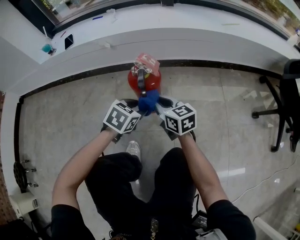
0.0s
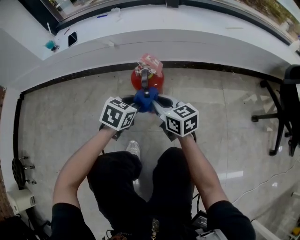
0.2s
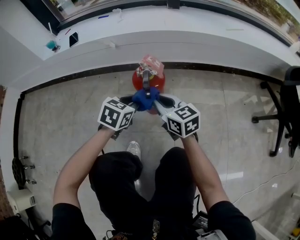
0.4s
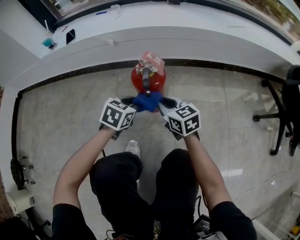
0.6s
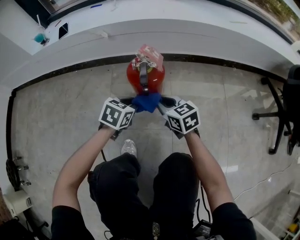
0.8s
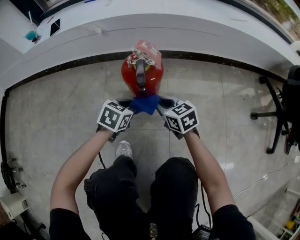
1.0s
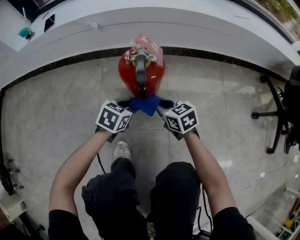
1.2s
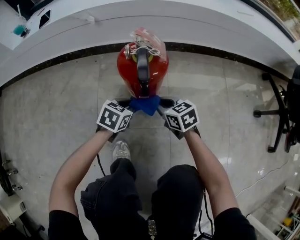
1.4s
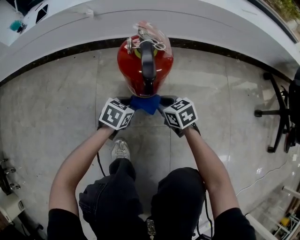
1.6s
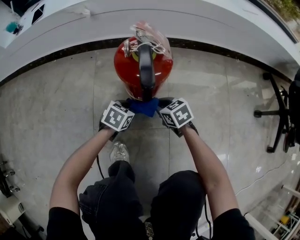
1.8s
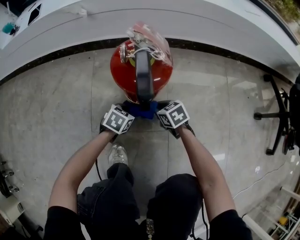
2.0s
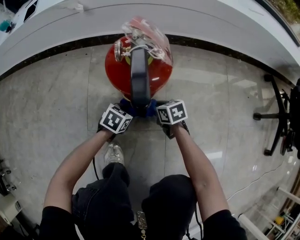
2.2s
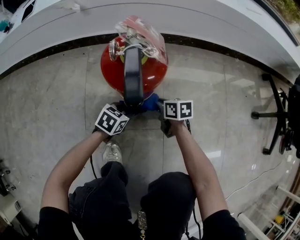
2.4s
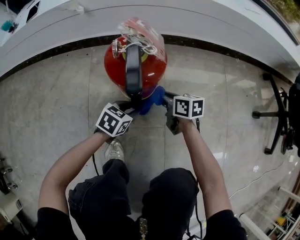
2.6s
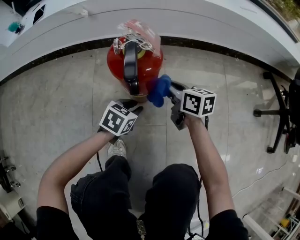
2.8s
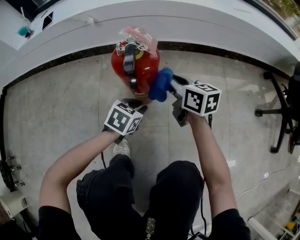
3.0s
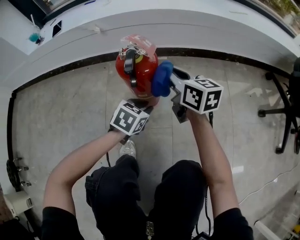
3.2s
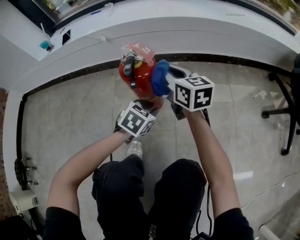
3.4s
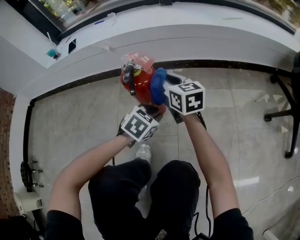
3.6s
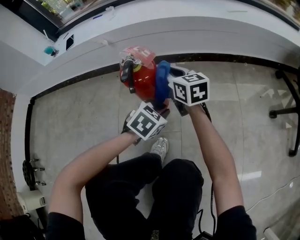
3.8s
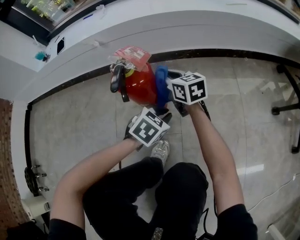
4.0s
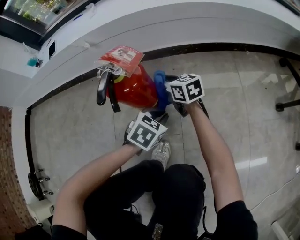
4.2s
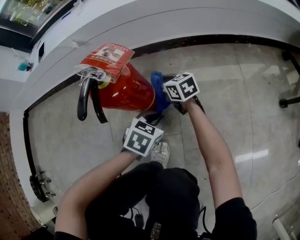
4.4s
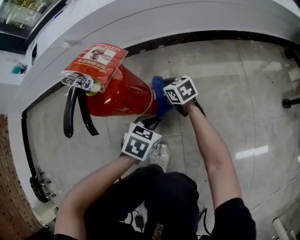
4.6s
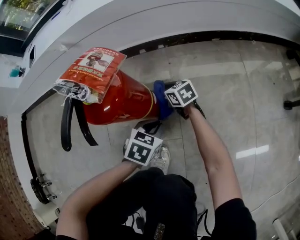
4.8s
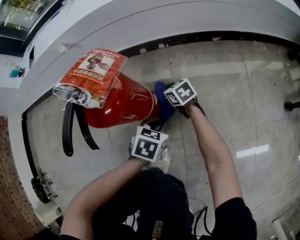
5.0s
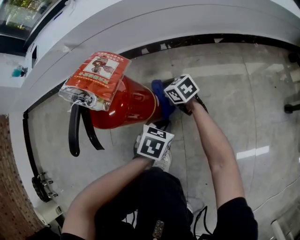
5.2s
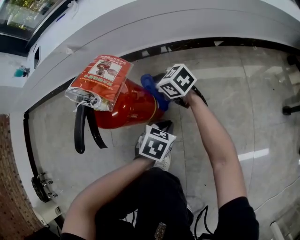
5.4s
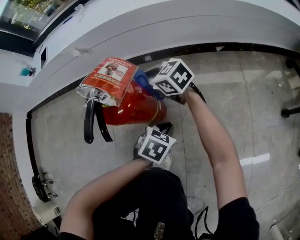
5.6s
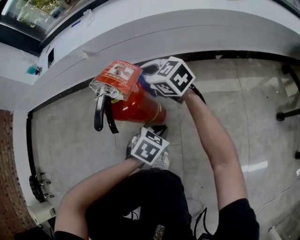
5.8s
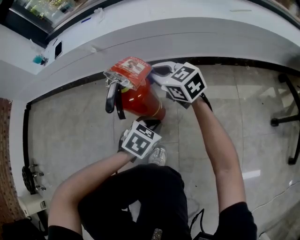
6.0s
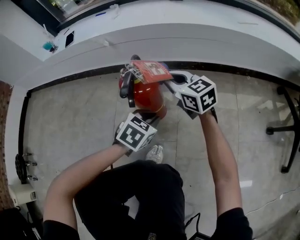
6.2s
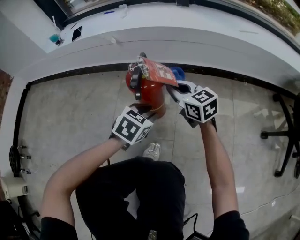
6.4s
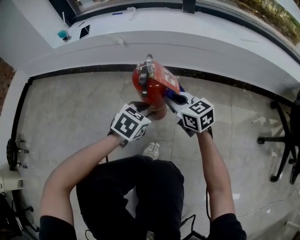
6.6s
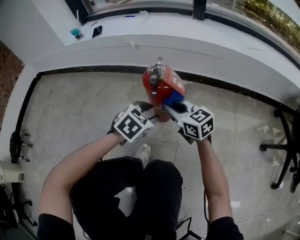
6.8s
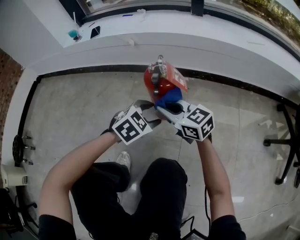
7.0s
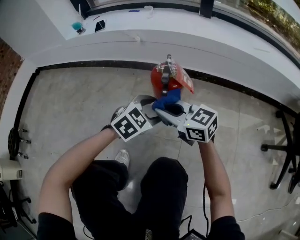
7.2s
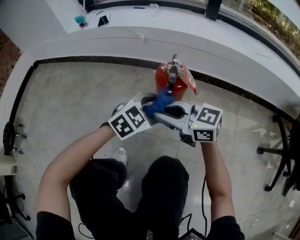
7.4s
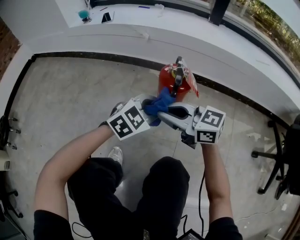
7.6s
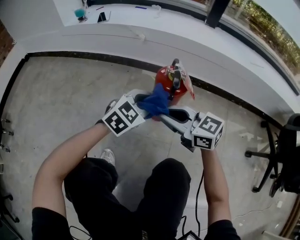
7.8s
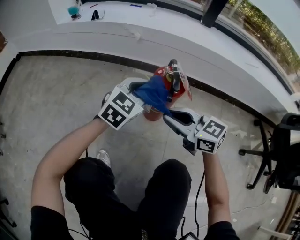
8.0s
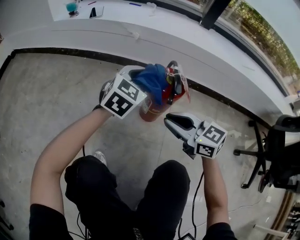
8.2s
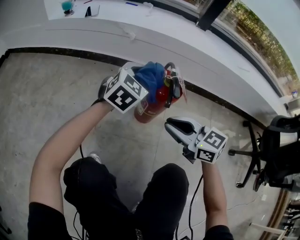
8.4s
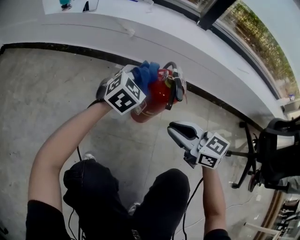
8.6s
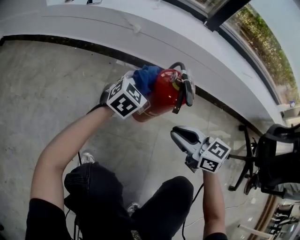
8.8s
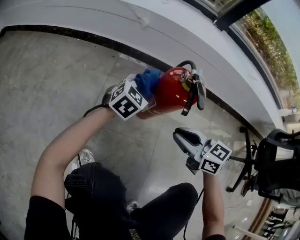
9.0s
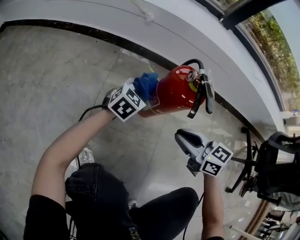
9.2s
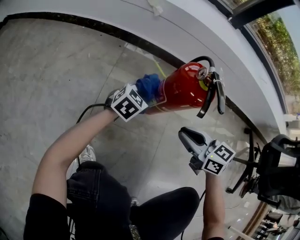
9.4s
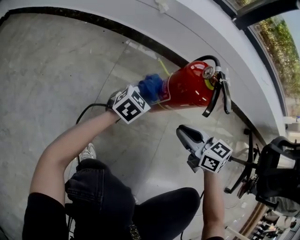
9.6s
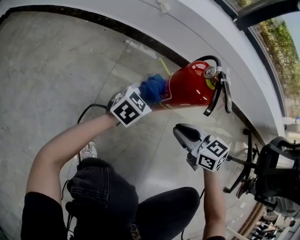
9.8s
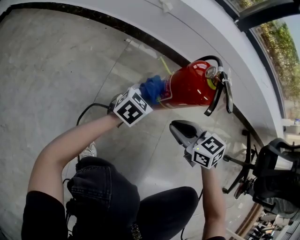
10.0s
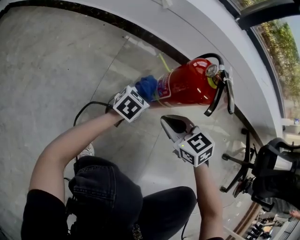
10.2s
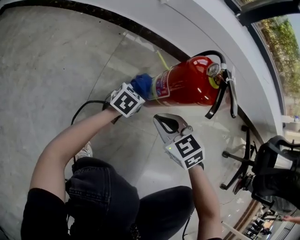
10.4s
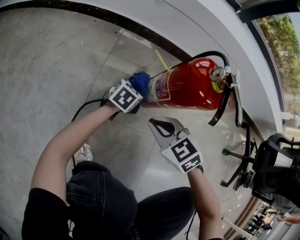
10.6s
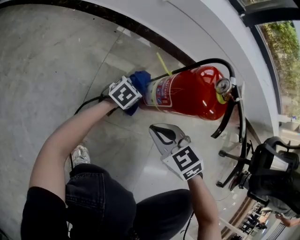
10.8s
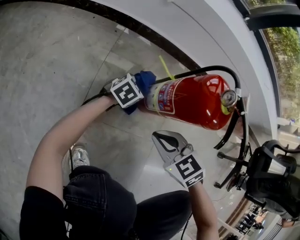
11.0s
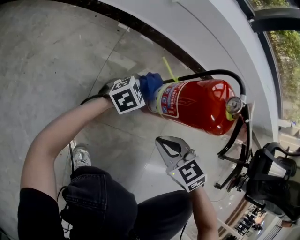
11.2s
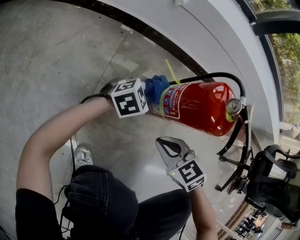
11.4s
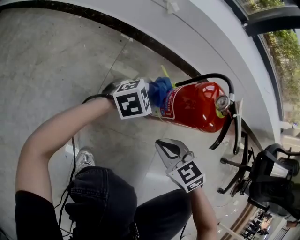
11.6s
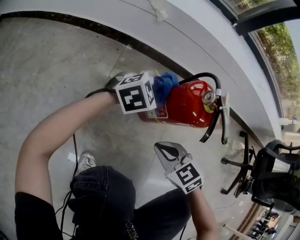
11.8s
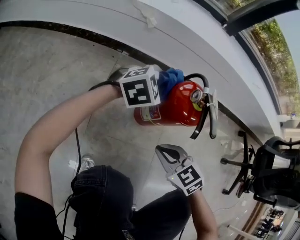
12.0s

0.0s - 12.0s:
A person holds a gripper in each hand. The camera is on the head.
0.0s - 1.6s: The two grippers go roughly 20 cm downward. The right gripper turns by about 30 degrees. The left gripper closes its fingers.
1.6s - 3.0s: The left gripper moves upward and to the right, approximately 10 cm. Meanwhile the right gripper moves upward, roughly 15 cm, and turns by approximately 30 degrees.
3.0s - 4.4s: The left gripper goes some 5 cm to the right, and reaches roughly 10 cm upward, then returns. Meanwhile the right gripper goes roughly 15 cm downward and forward.
4.4s - 6.0s: The right gripper travels upward by approximately 20 cm, and turns by roughly 30 degrees. Meanwhile the left gripper is displaced upward by some 5 cm.
6.0s - 7.6s: The right gripper moves roughly 25 cm, and rotates about 30 degrees. The left gripper travels upward by some 15 cm, rotates about 30 degrees, and opens, then closes once more.
7.6s - 9.0s: The left gripper is displaced forward and downward by roughly 15 cm. The right gripper goes about 10 cm downward and to the right, and swivels approximately 30 degrees.
9.0s - 10.4s: The left gripper goes approximately 15 cm downward, and changes its angle by about 30 degrees. The right gripper travels downward and to the left by approximately 15 cm, and swivels roughly 30 degrees.
10.4s - 12.0s: The left gripper shifts about 20 cm upward, and rolls clockwise, seen from behind, by roughly 40 degrees. Meanwhile the right gripper changes place by about 5 cm.

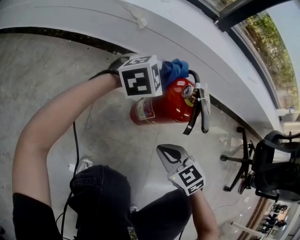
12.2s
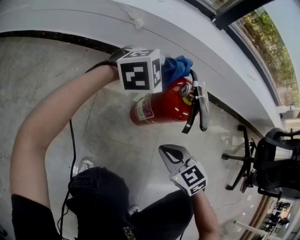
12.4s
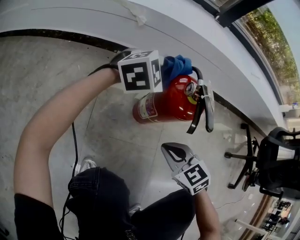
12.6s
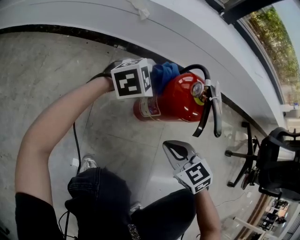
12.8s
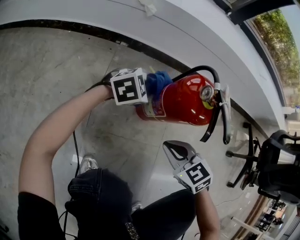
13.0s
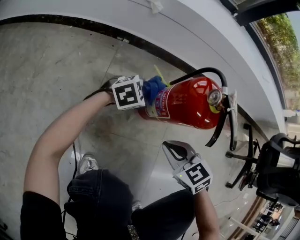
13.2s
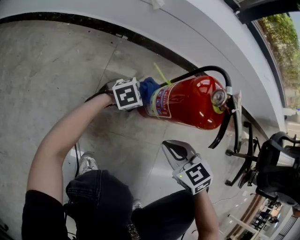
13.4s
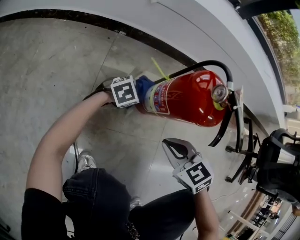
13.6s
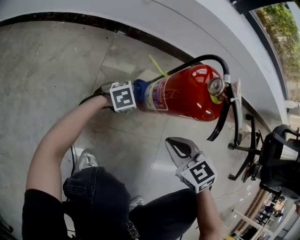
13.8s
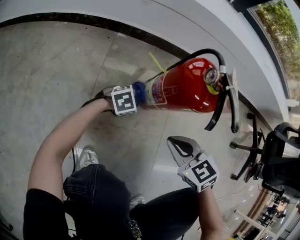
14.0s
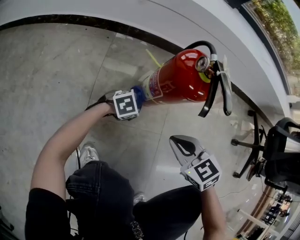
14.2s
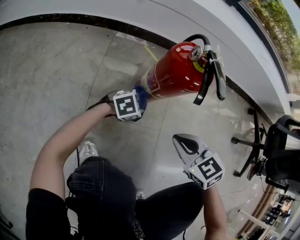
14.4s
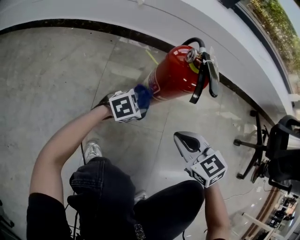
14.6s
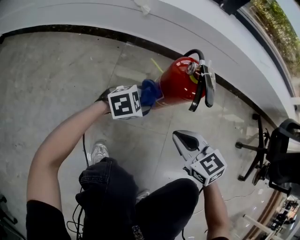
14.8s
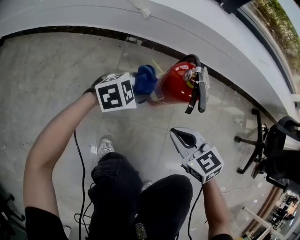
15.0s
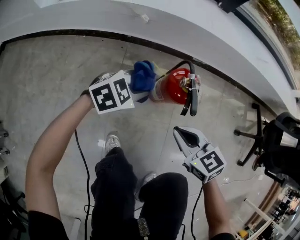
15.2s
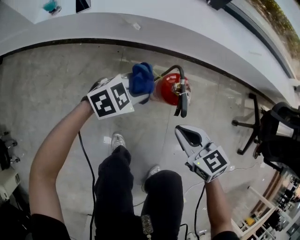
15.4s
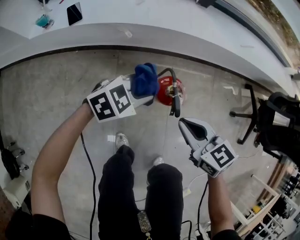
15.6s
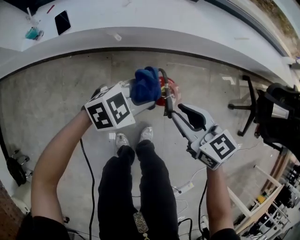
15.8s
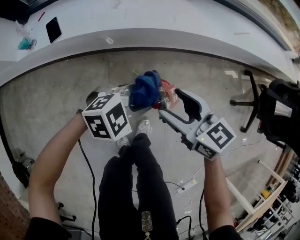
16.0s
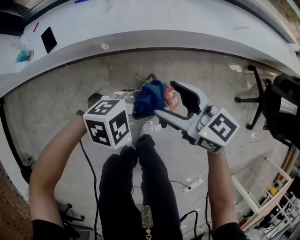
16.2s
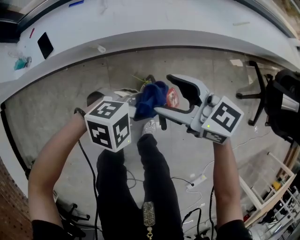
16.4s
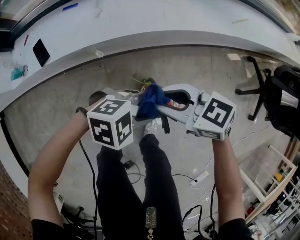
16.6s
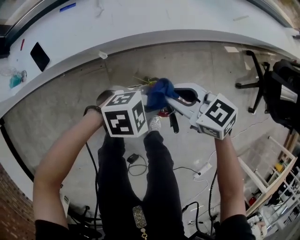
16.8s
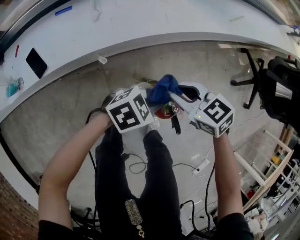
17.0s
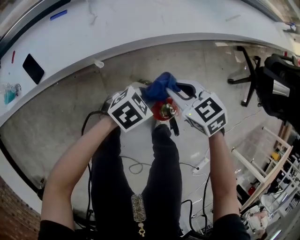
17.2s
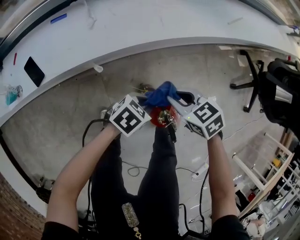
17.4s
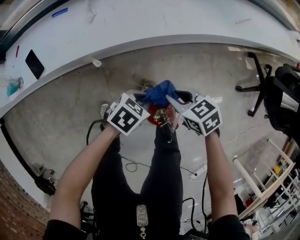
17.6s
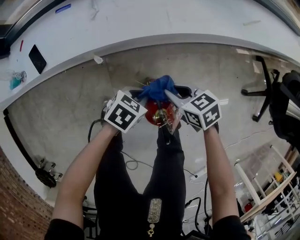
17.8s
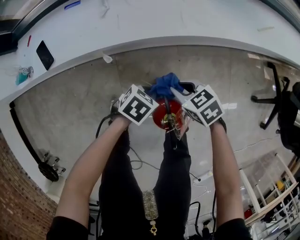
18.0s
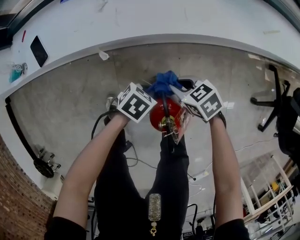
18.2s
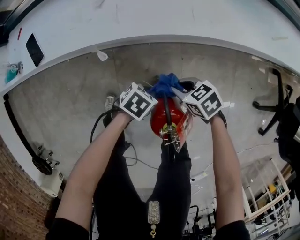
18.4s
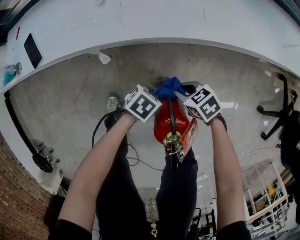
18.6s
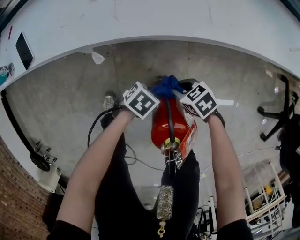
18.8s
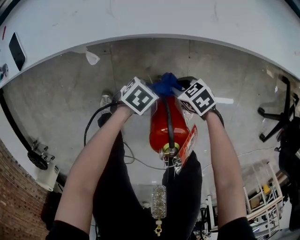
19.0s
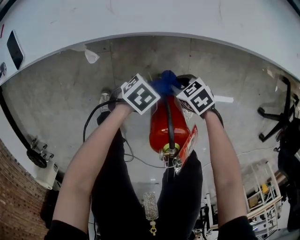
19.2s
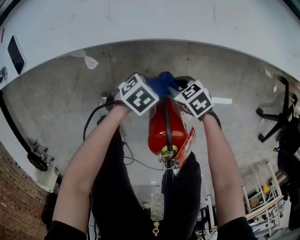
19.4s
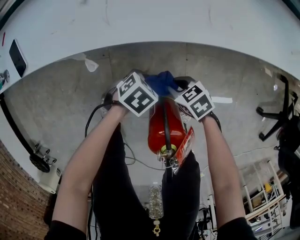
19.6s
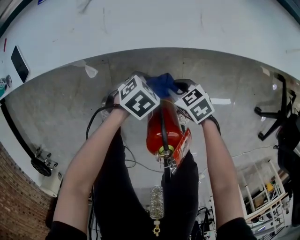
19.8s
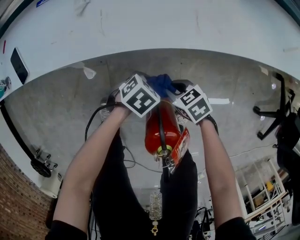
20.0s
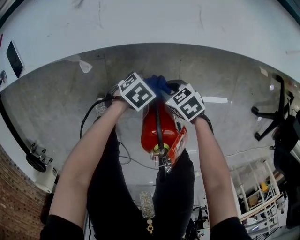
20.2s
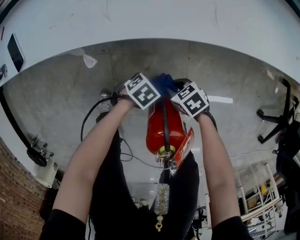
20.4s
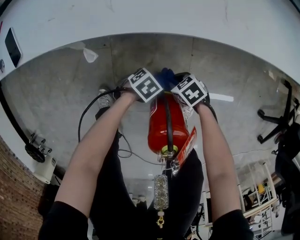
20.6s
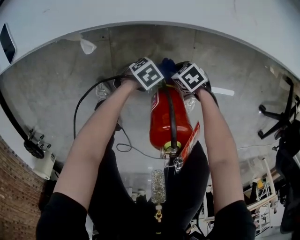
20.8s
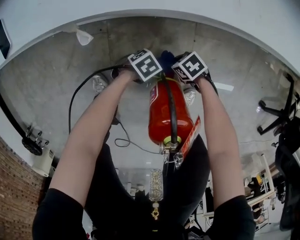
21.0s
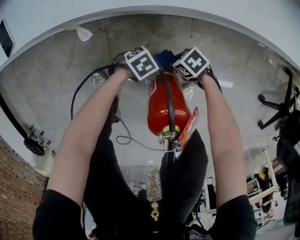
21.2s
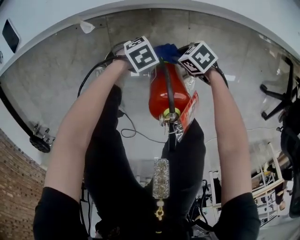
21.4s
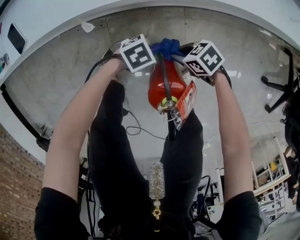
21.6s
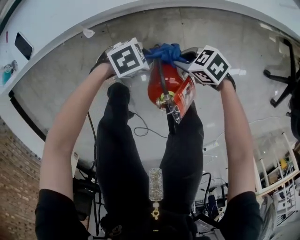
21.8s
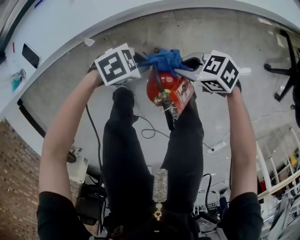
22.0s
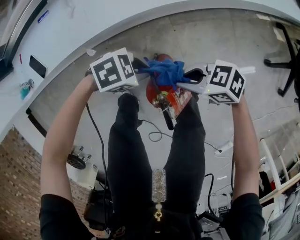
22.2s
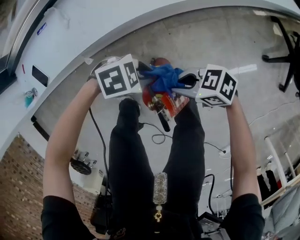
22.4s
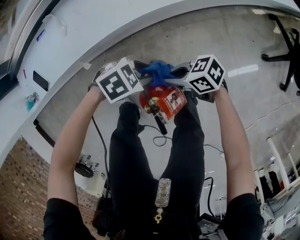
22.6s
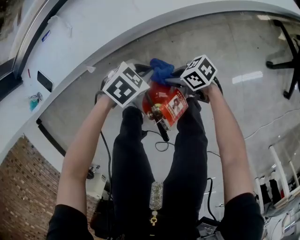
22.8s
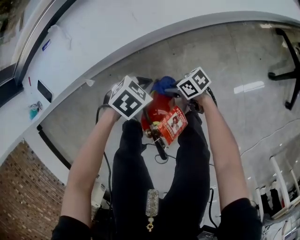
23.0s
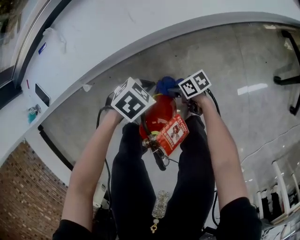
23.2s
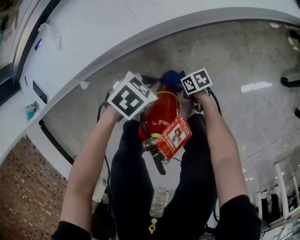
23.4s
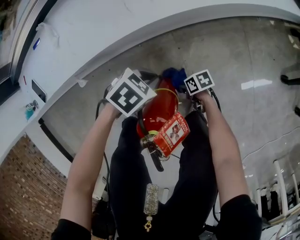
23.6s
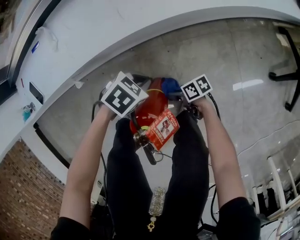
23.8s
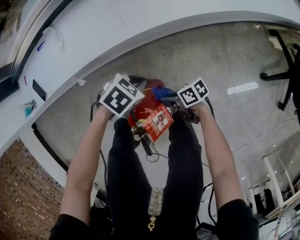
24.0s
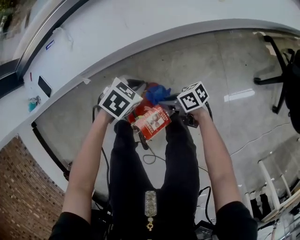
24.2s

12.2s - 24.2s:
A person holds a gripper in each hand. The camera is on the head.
12.2s - 13.8s: The left gripper travels downward by some 30 cm, and changes its angle by about 30 degrees.
13.8s - 15.2s: The right gripper goes about 20 cm upward. Meanwhile the left gripper goes about 30 cm upward.
15.2s - 16.6s: The left gripper heads upward, covering about 15 cm, and rotates roughly 40 degrees; the right gripper shifts by approximately 25 cm, and opens its fingers.
16.6s - 18.2s: Both grippers travel together downward, approximately 20 cm. The left gripper twists about 60 degrees counterclockwise, seen from behind. The right gripper swivels some 30 degrees.
18.2s - 19.8s: Both grippers move downward, approximately 10 cm.
19.8s - 21.2s: Both grippers move downward, about 10 cm. The right gripper turns by approximately 20 degrees.
21.2s - 22.6s: The grippers both shift upward by approximately 25 cm. The left gripper turns by some 30 degrees, and opens up. Meanwhile the right gripper changes its angle by approximately 40 degrees.
22.6s - 24.2s: The right gripper travels downward and back again, roughly 30 cm each way, and swivels some 20 degrees. The left gripper travels downward and back again, some 10 cm each way, changes its angle by roughly 30 degrees, and closes.
